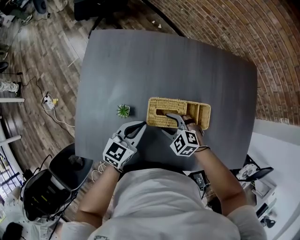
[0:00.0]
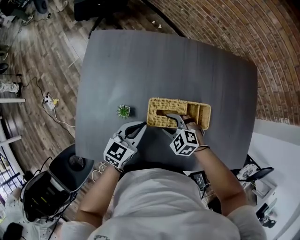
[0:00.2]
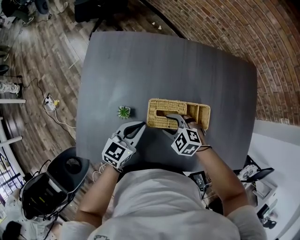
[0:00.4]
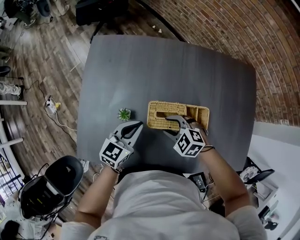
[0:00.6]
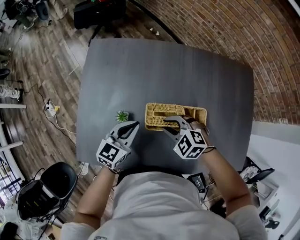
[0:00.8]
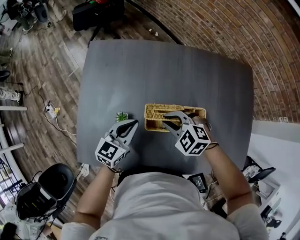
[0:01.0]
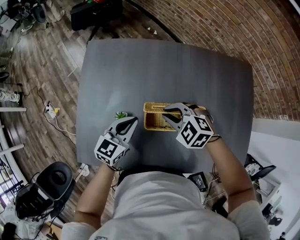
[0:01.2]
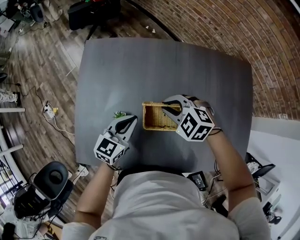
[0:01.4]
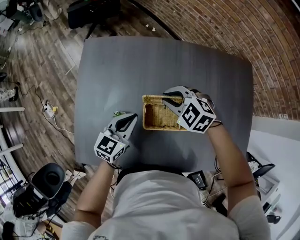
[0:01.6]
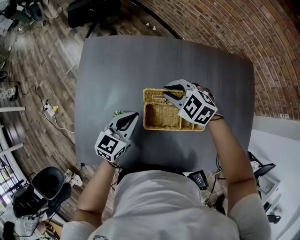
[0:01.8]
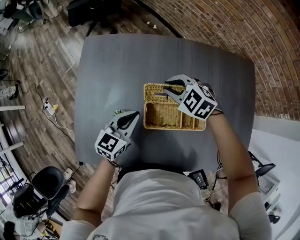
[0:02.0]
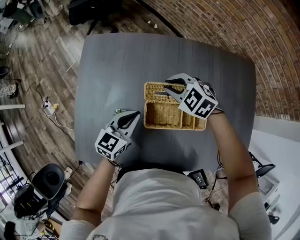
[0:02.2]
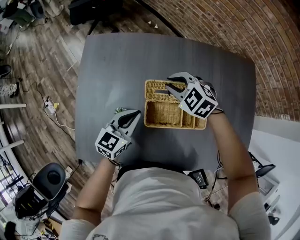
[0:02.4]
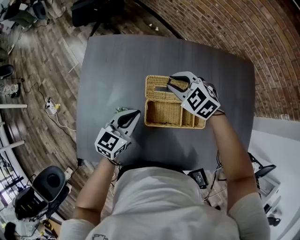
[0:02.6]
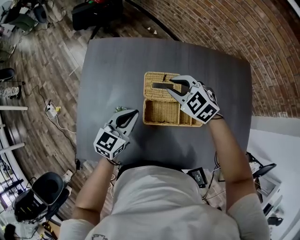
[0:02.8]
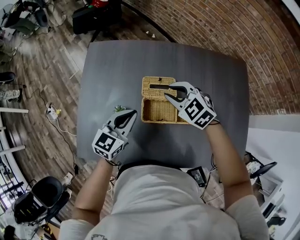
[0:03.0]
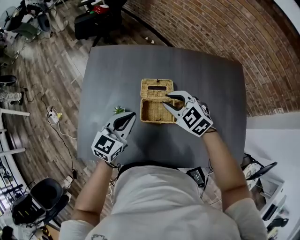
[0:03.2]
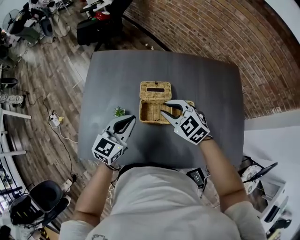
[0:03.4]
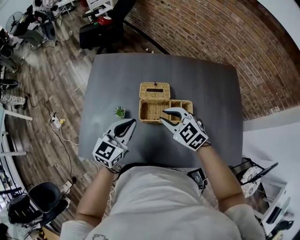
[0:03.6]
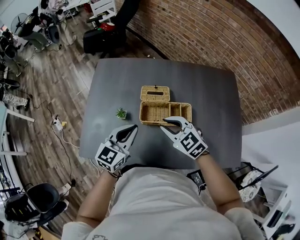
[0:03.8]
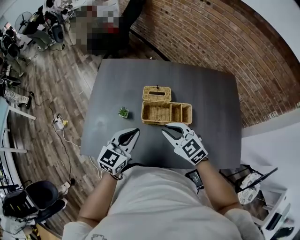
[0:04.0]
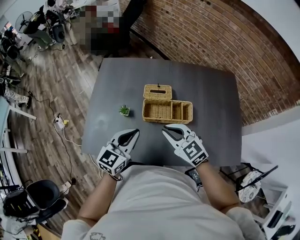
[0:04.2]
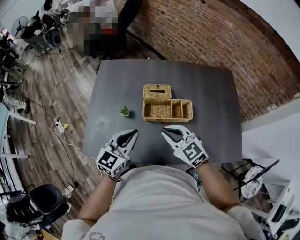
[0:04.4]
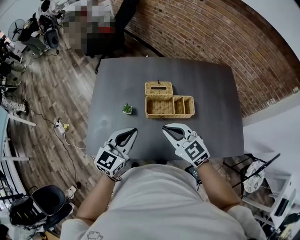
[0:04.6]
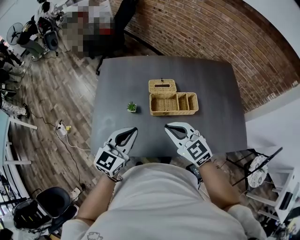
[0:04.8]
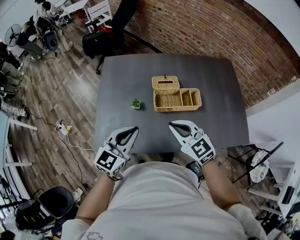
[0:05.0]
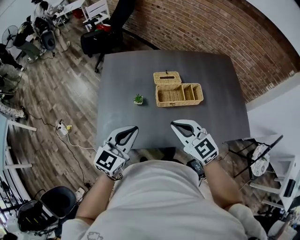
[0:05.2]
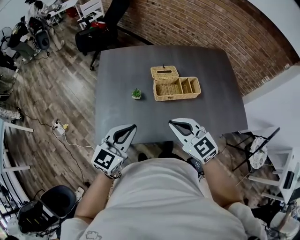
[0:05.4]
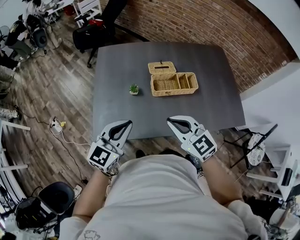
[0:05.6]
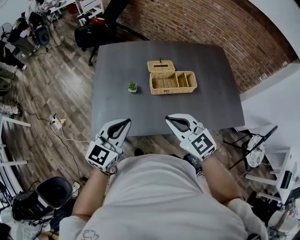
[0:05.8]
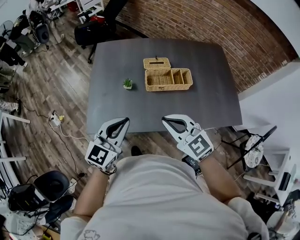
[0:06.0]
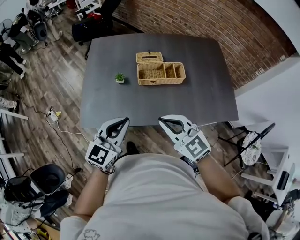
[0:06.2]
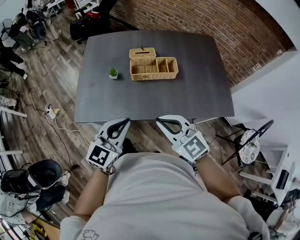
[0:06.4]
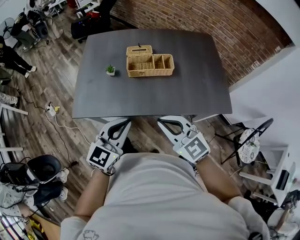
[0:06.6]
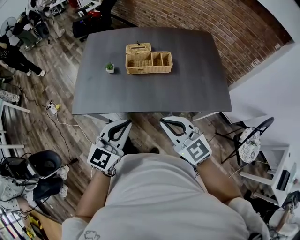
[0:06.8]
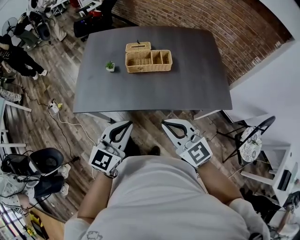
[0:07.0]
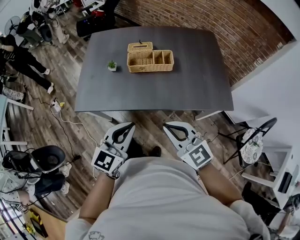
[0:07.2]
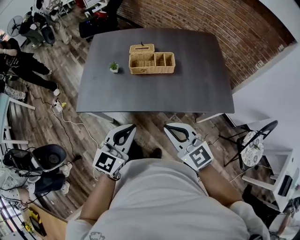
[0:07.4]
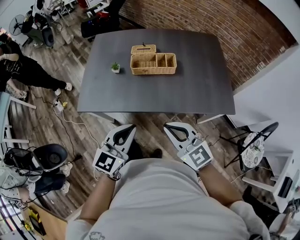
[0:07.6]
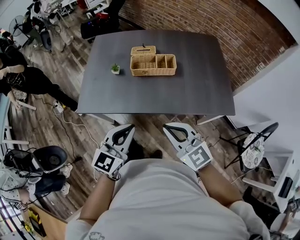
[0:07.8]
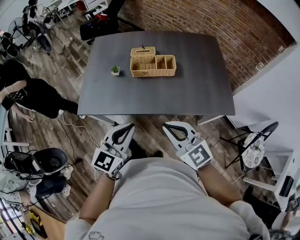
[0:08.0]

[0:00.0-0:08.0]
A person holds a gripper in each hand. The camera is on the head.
0:00.0 to 0:01.6: The left gripper shifts approximately 5 cm forward. Meanwhile the right gripper goes about 20 cm forward and upward, and closes up.
0:01.6 to 0:03.2: The right gripper goes roughly 5 cm backward, while the left gripper heads upward, covering roughly 5 cm.
0:03.2 to 0:04.8: The right gripper is displaced backward and upward by some 25 cm, swivels about 20 degrees, and closes its fingers. The left gripper travels backward, upward and to the left by roughly 20 cm.
0:04.8 to 0:06.4: The grippers both shift backward by approximately 20 cm.
0:06.4 to 0:08.0: The grippers both shift backward and to the right by about 10 cm.

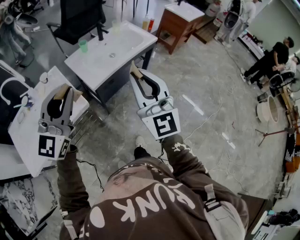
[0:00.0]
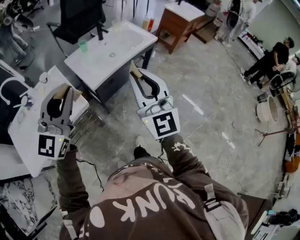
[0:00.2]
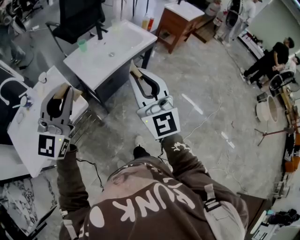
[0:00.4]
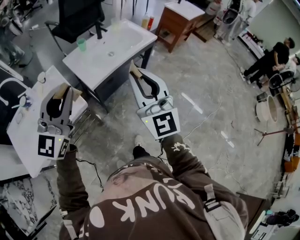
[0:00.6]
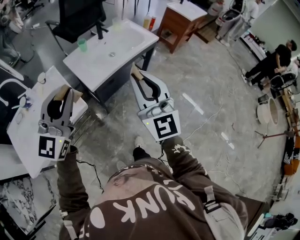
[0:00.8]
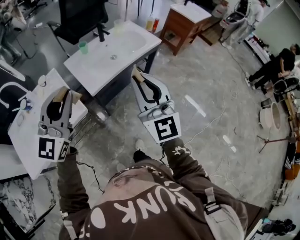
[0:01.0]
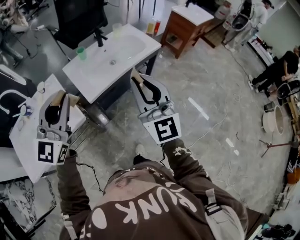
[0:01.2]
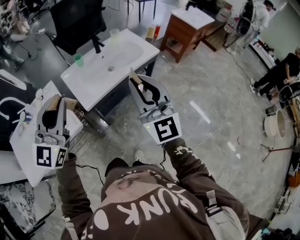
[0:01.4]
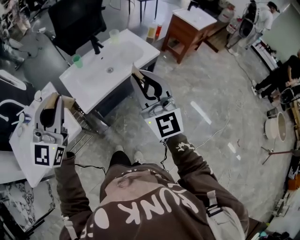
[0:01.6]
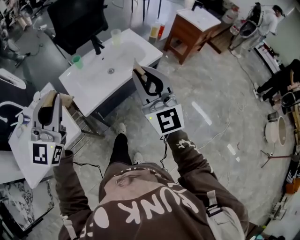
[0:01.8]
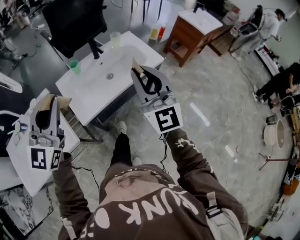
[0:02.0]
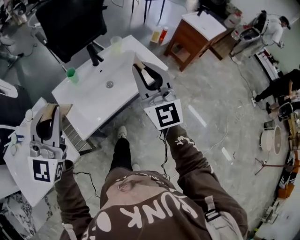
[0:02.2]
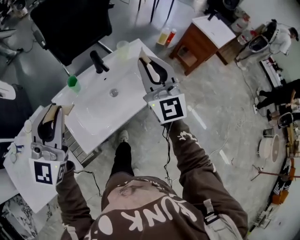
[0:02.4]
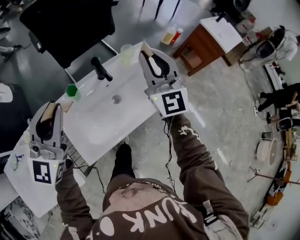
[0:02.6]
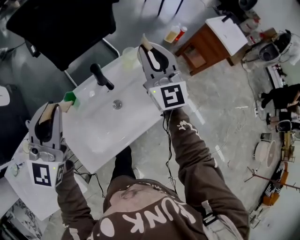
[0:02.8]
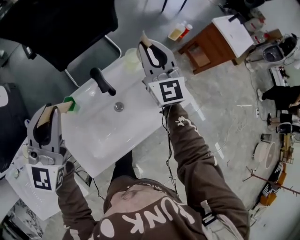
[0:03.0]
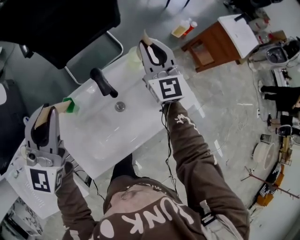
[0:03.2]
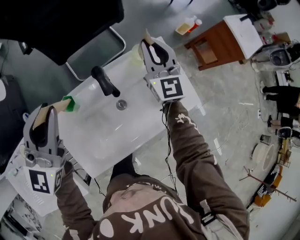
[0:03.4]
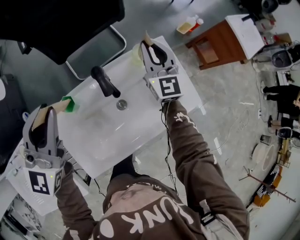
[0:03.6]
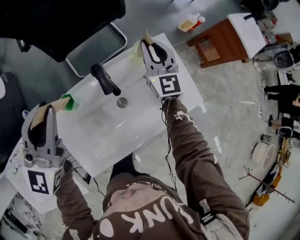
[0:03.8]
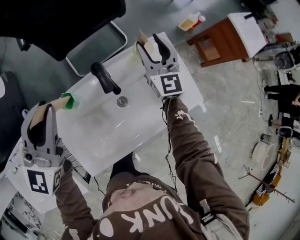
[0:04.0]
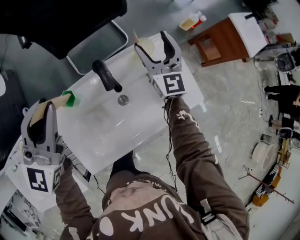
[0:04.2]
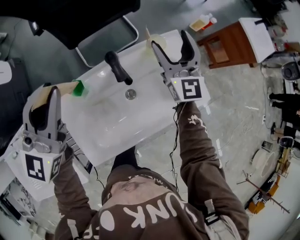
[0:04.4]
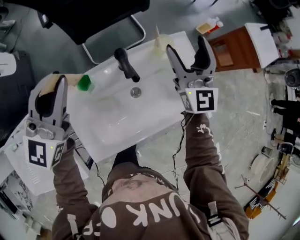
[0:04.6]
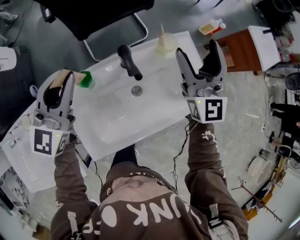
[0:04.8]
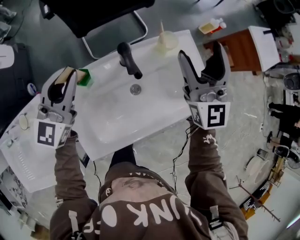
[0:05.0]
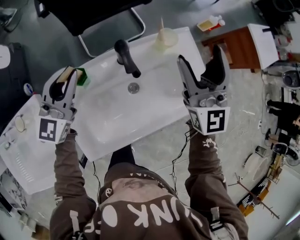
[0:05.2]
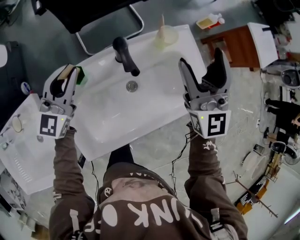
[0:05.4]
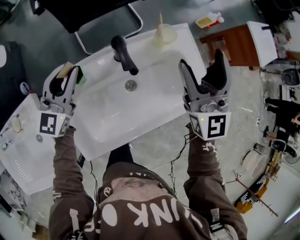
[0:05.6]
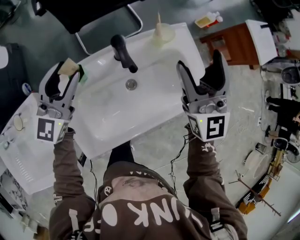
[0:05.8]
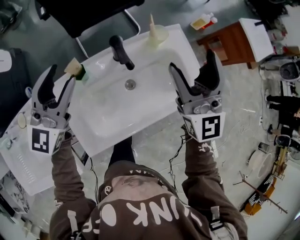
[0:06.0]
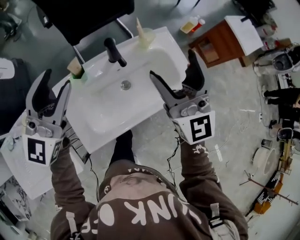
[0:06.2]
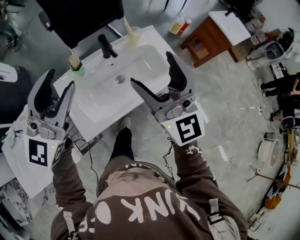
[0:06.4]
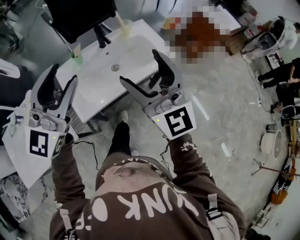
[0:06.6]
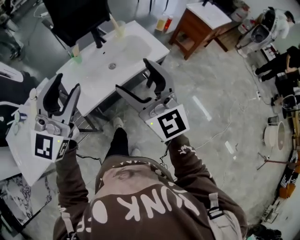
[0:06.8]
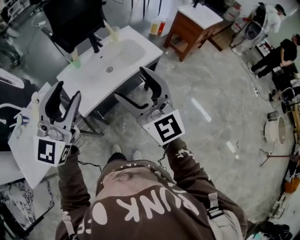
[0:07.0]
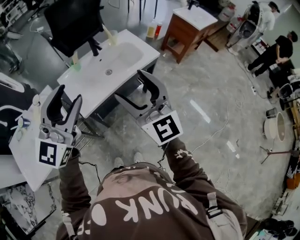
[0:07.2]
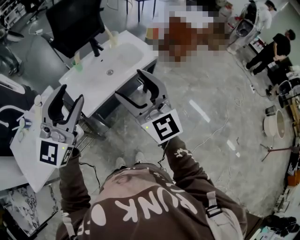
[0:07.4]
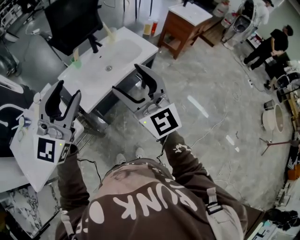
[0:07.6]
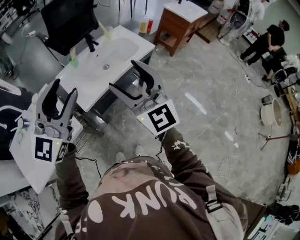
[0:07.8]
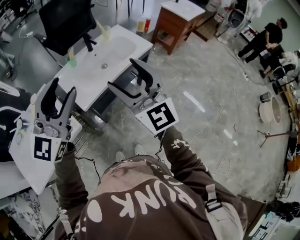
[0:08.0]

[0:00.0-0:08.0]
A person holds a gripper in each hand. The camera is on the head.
0:00.0 to 0:01.6: The two grippers go roughly 15 cm forward and to the right.
0:01.6 to 0:03.2: Both grippers are carried forward, approximately 60 cm.
0:03.2 to 0:04.8: The left gripper is displaced downward by approximately 5 cm. Meanwhile the right gripper moves backward, roughly 5 cm, and opens its fingers.
0:04.8 to 0:06.4: The left gripper shifts roughly 25 cm backward and upward, and opens. Meanwhile the right gripper travels backward by approximately 25 cm.
0:06.4 to 0:08.0: The grippers both shift backward by some 30 cm.

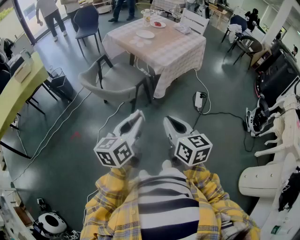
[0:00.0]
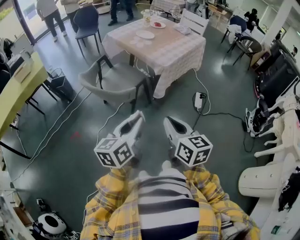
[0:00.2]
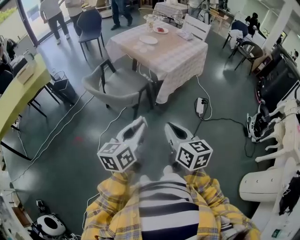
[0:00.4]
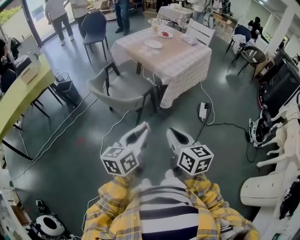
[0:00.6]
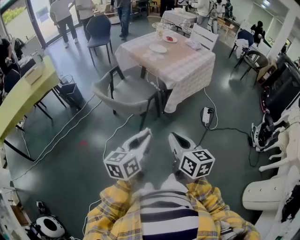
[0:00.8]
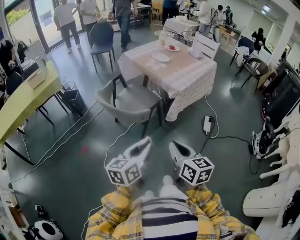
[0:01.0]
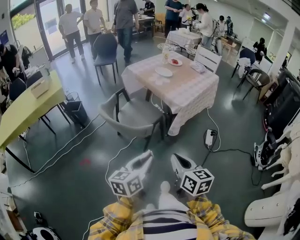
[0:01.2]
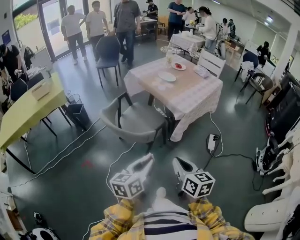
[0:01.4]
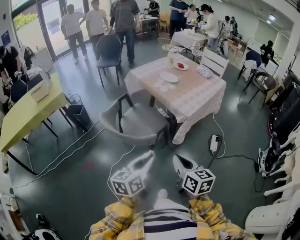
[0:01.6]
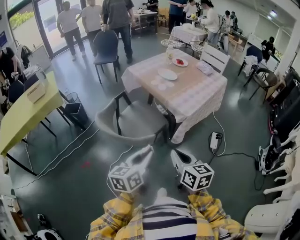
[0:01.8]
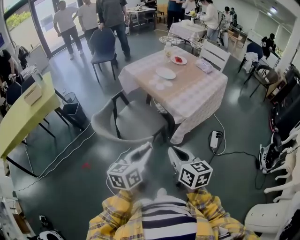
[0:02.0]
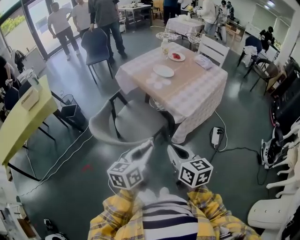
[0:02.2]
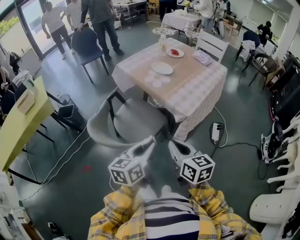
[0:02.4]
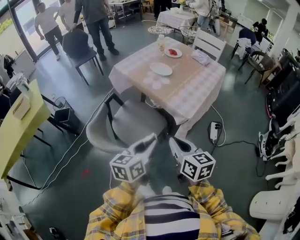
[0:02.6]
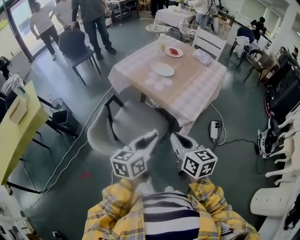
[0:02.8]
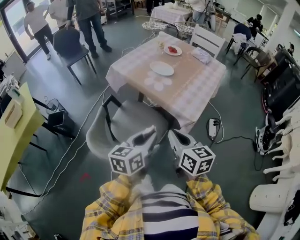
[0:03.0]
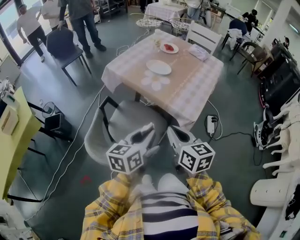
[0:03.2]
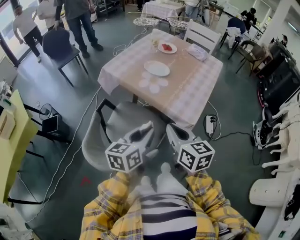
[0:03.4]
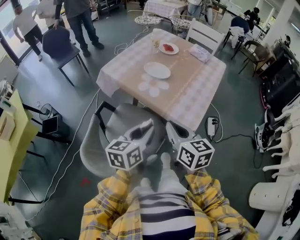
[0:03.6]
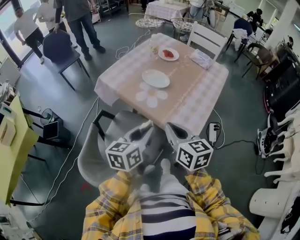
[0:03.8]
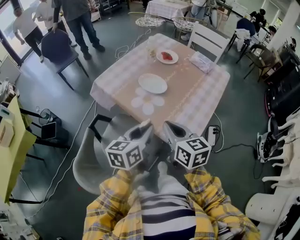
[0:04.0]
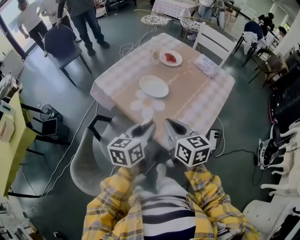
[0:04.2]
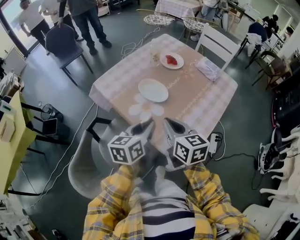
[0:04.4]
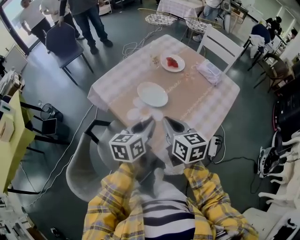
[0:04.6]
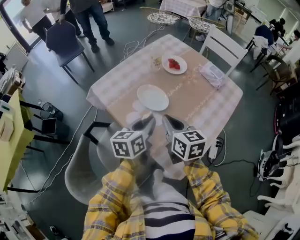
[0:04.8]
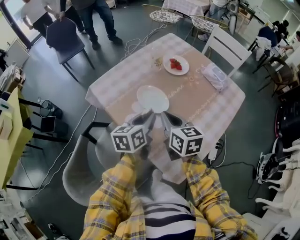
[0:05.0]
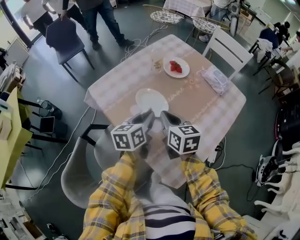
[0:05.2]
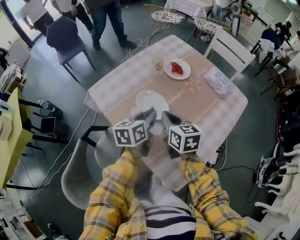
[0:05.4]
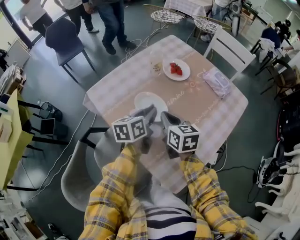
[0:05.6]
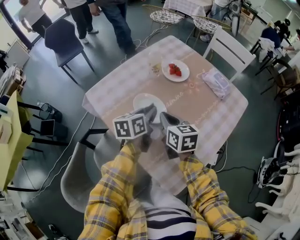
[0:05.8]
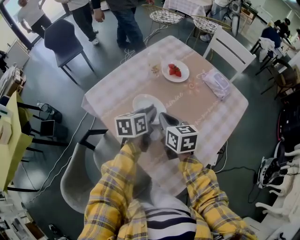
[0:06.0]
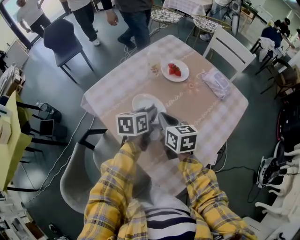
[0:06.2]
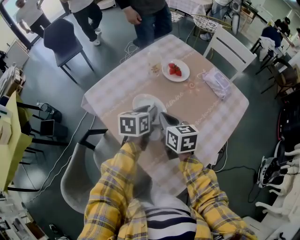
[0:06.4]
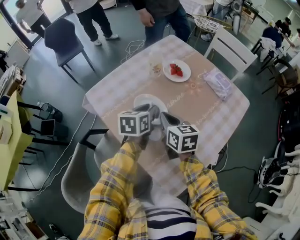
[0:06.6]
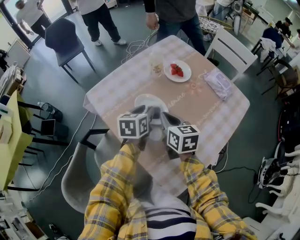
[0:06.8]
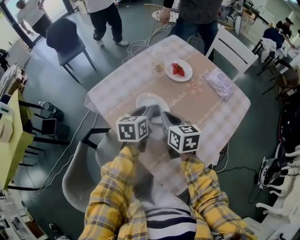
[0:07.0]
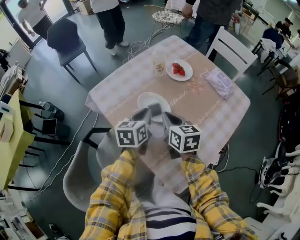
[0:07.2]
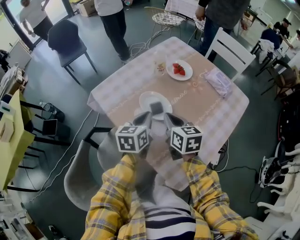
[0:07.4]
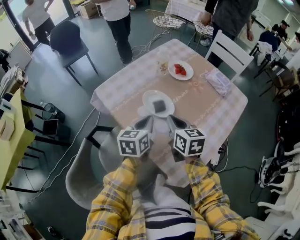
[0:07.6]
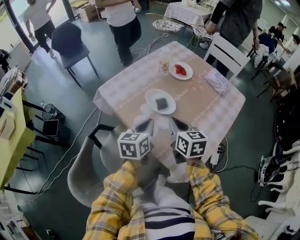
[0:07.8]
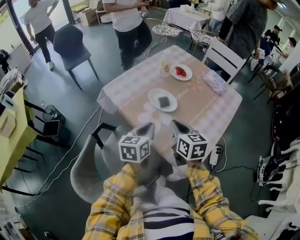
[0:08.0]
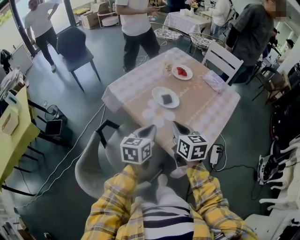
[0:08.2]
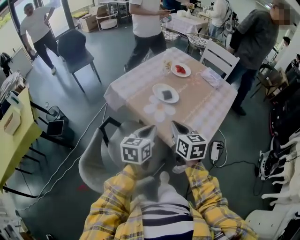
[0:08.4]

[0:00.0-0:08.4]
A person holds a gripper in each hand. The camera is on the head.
0:00.0 to 0:01.4: The right gripper shifts approximately 5 cm forward; the left gripper is displaced to the left by some 5 cm.
0:01.4 to 0:02.8: The grippers both shift forward by roughly 25 cm.
0:02.8 to 0:04.2: The two grippers go approximately 25 cm forward.
0:04.2 to 0:05.6: Both grippers travel together forward, roughly 20 cm.
0:05.6 to 0:07.0: The grippers stay close to where they were, moving slightly.
0:07.0 to 0:08.4: The two grippers go about 20 cm backward. The left gripper closes.
